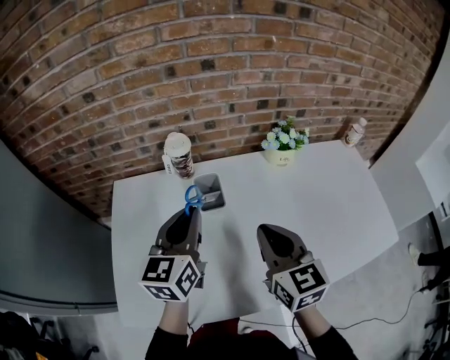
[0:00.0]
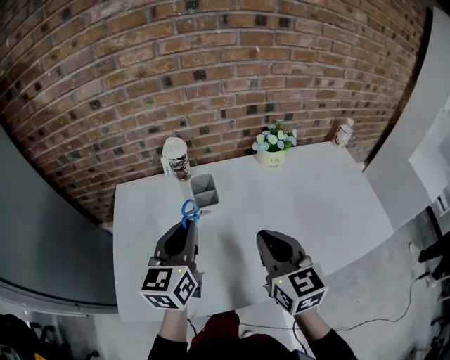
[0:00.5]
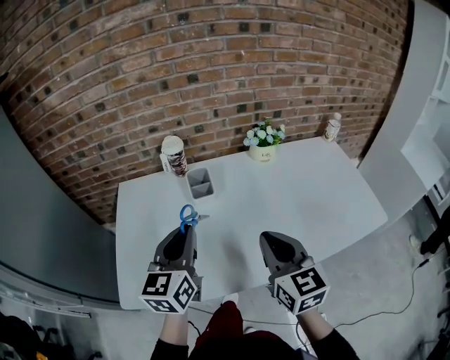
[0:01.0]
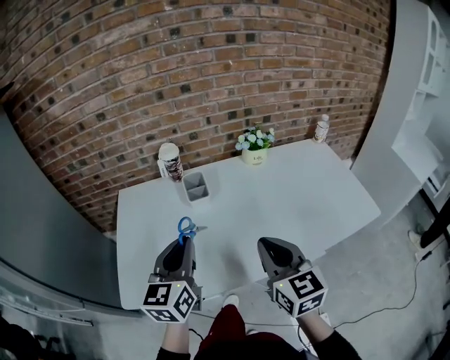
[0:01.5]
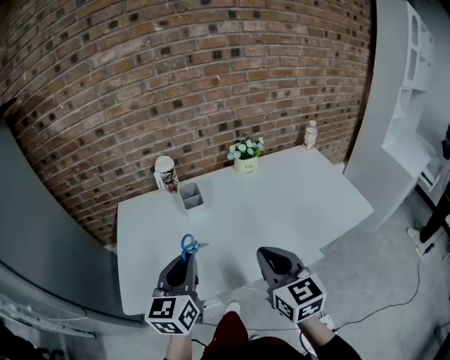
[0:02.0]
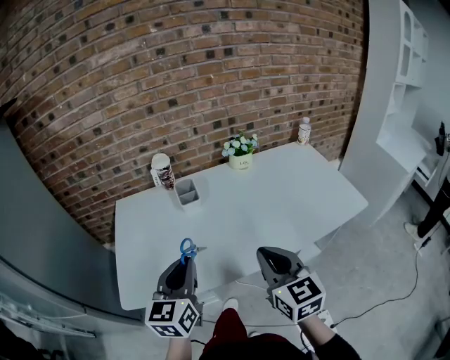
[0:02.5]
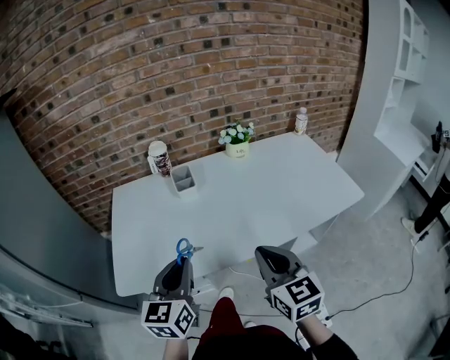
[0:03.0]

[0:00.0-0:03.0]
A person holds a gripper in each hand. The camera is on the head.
0:00.0 to 0:01.5: Both grippers travel together backward, approximately 15 cm.
0:01.5 to 0:03.0: Both grippers travel together backward, about 10 cm.

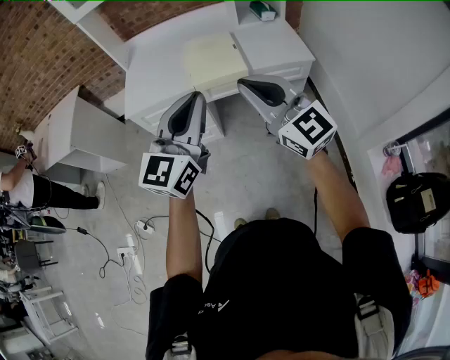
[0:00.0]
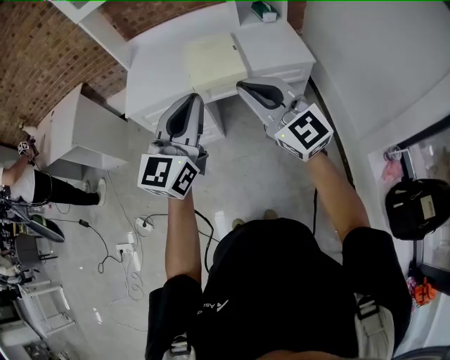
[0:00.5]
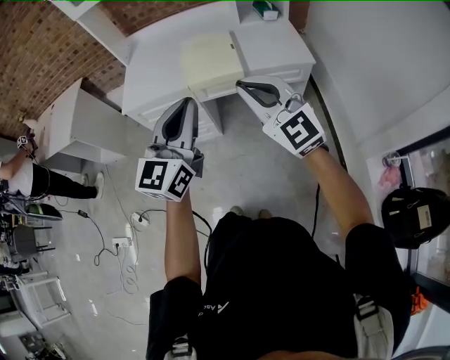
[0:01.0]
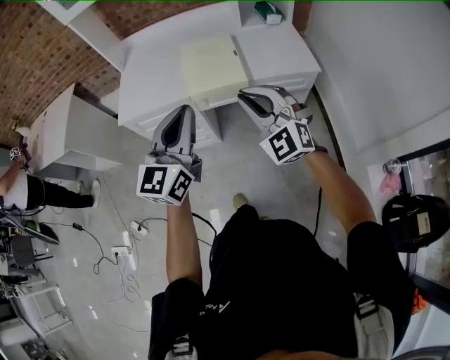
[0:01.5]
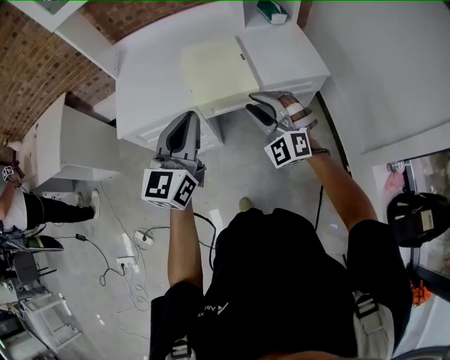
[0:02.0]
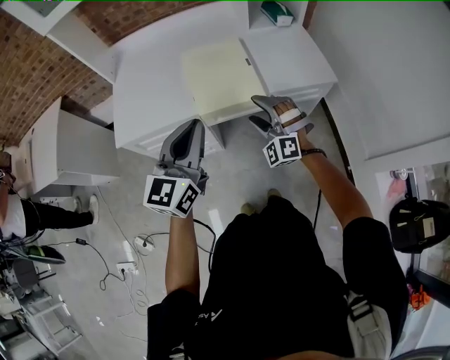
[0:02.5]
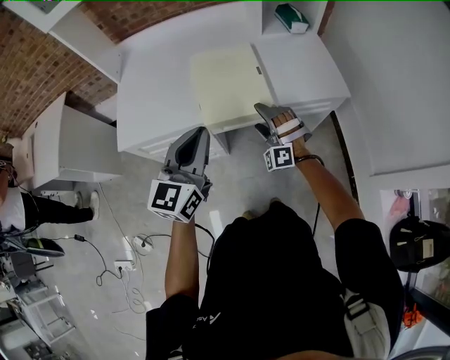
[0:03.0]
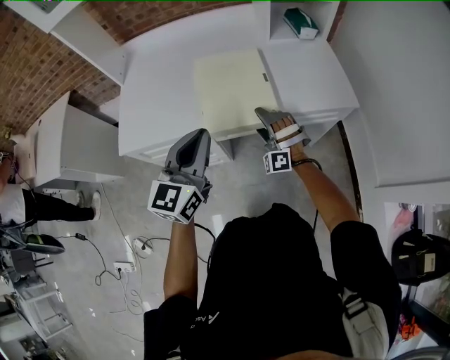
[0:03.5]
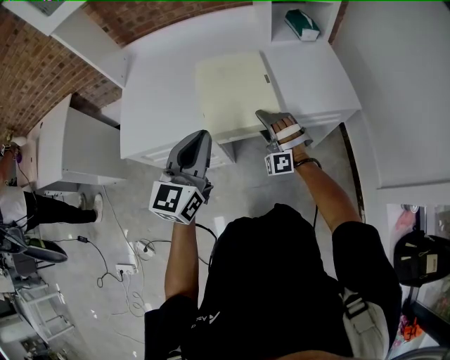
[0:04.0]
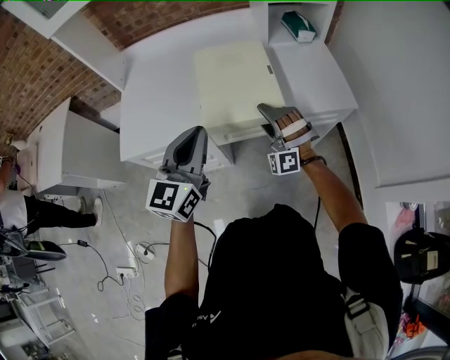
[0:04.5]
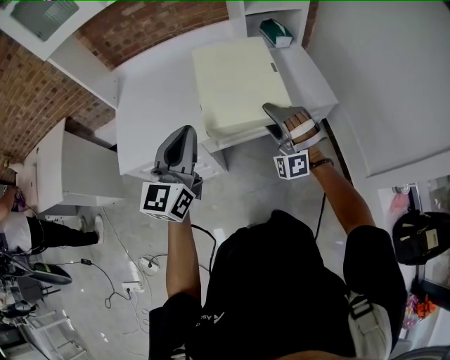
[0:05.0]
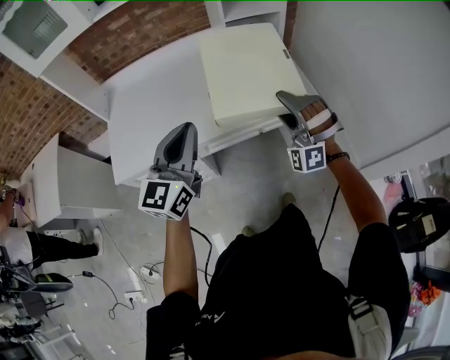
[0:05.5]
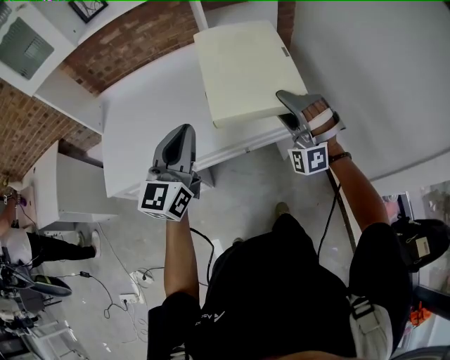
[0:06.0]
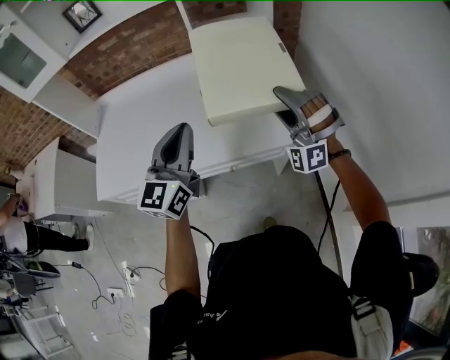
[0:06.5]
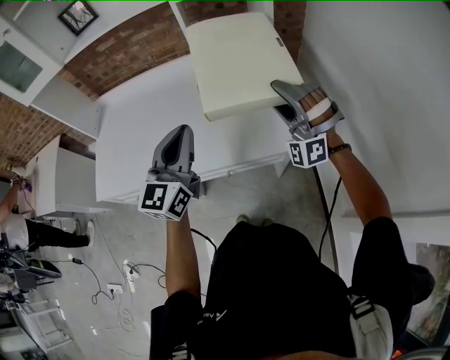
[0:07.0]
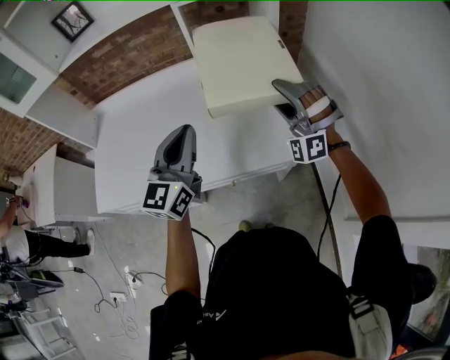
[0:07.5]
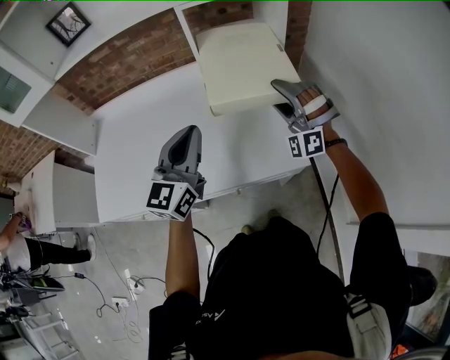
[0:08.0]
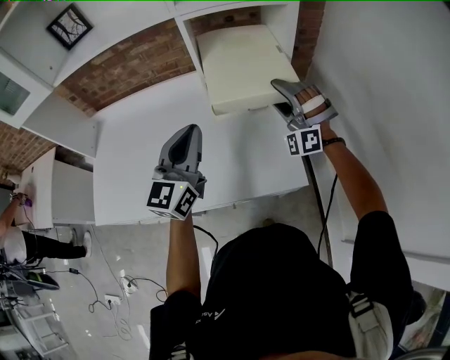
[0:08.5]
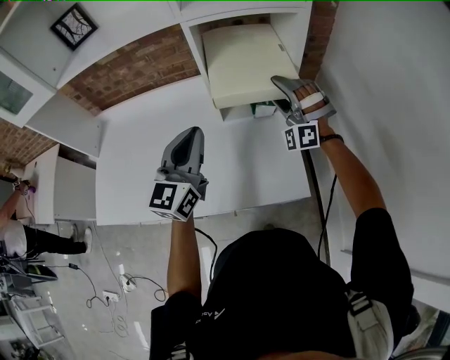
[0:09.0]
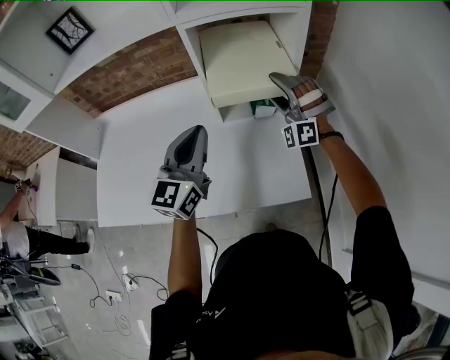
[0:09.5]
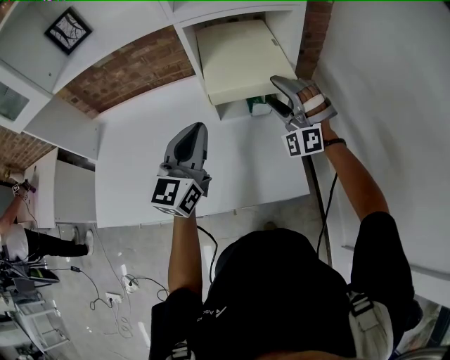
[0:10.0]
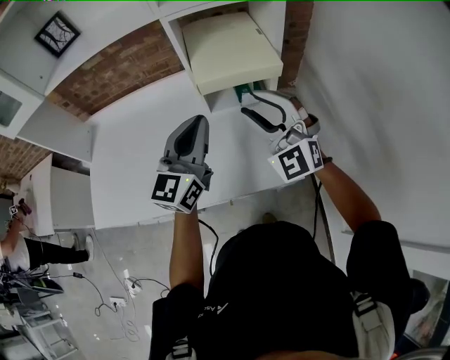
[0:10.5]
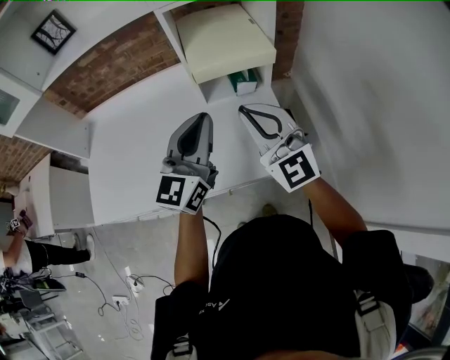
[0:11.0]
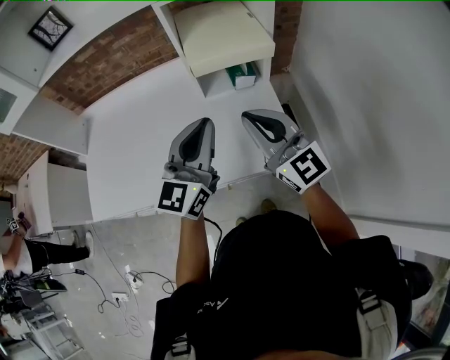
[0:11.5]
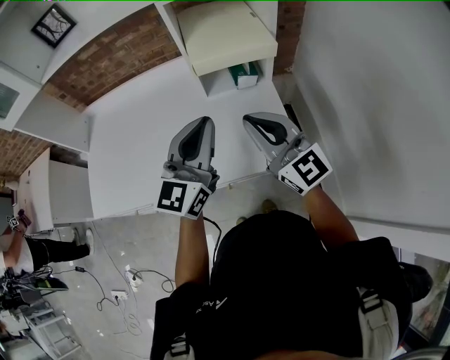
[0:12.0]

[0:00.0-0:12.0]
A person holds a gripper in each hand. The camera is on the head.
0:00.0 to 0:02.0: Both grippers travel together forward and downward, approximately 25 cm. The right gripper rotates around the line of its fingers by roughly 50 degrees, counterclockwise from behind.
0:02.0 to 0:04.0: The right gripper goes roughly 25 cm downward and forward, turns by about 30 degrees, and opens. Meanwhile the left gripper travels forward and downward by roughly 15 cm.
0:04.0 to 0:06.0: The left gripper travels to the right, upward and forward by some 20 cm, while the right gripper moves upward and to the right, roughly 35 cm.
0:06.0 to 0:08.0: The grippers both shift forward by roughly 20 cm.
0:08.0 to 0:10.0: Both grippers travel together forward, roughly 10 cm.
0:10.0 to 0:12.0: The left gripper is displaced backward by approximately 10 cm, while the right gripper is displaced backward by approximately 20 cm, twists some 80 degrees clockwise, seen from behind, and closes its fingers.

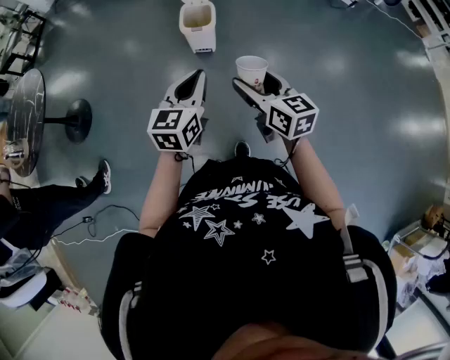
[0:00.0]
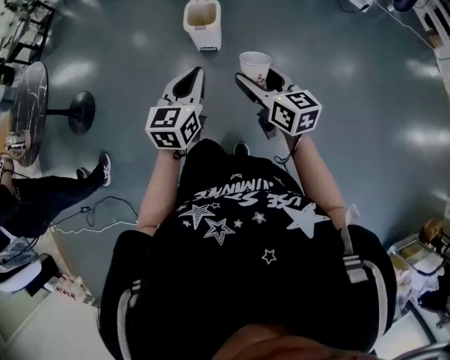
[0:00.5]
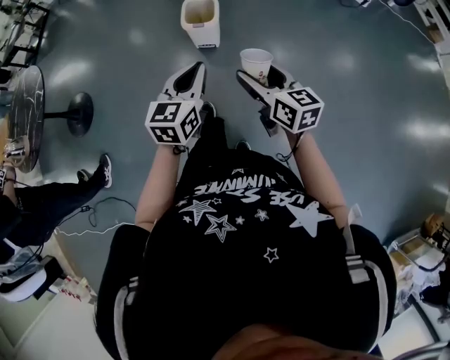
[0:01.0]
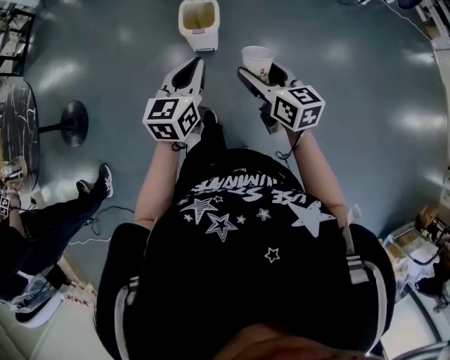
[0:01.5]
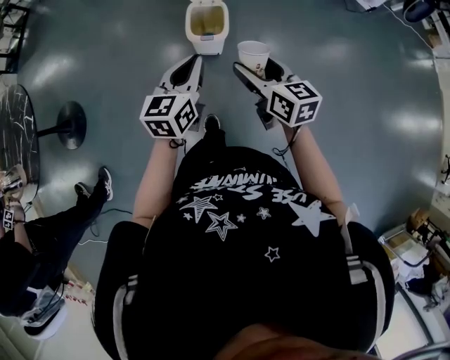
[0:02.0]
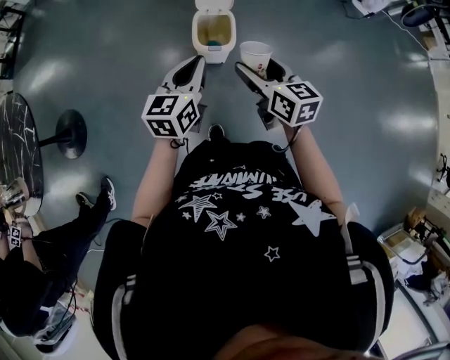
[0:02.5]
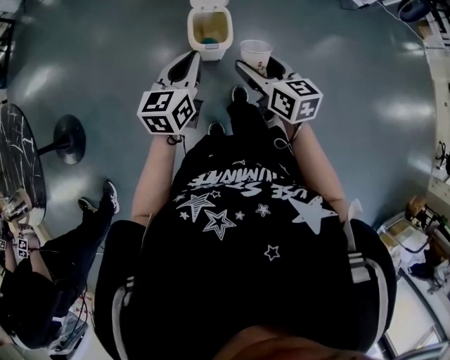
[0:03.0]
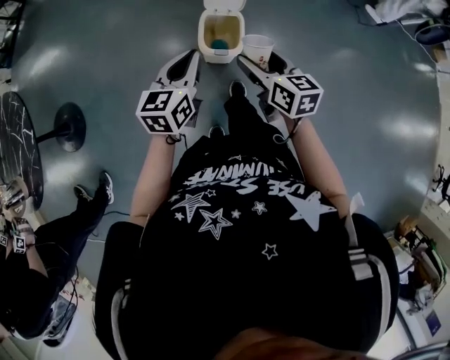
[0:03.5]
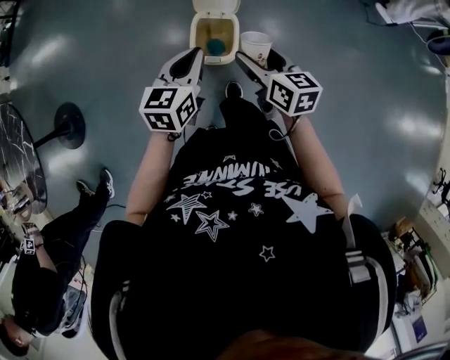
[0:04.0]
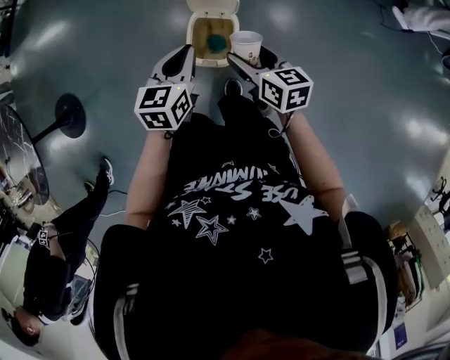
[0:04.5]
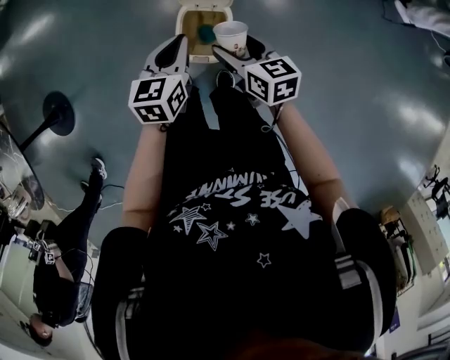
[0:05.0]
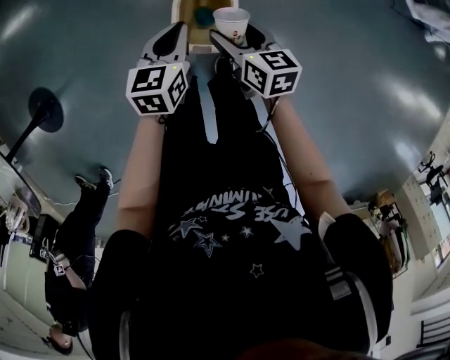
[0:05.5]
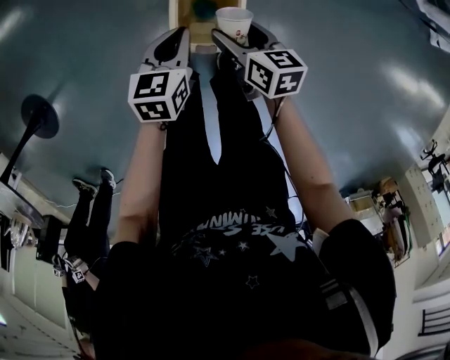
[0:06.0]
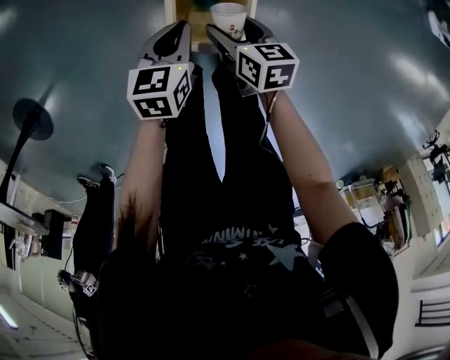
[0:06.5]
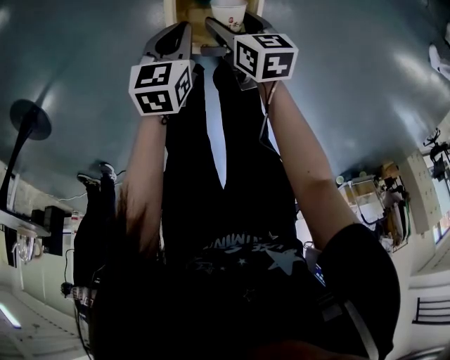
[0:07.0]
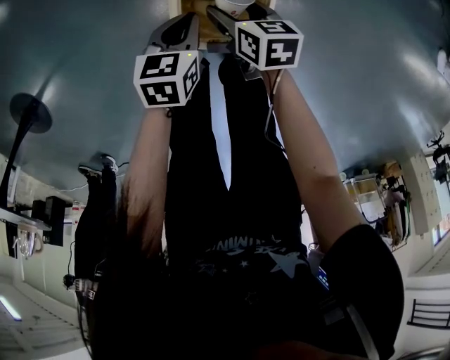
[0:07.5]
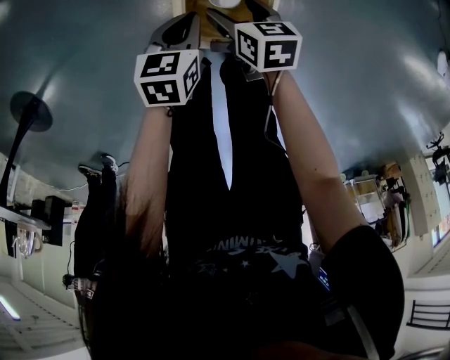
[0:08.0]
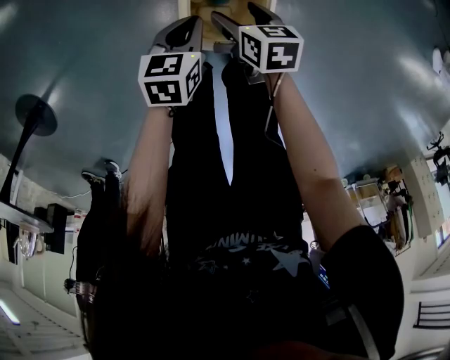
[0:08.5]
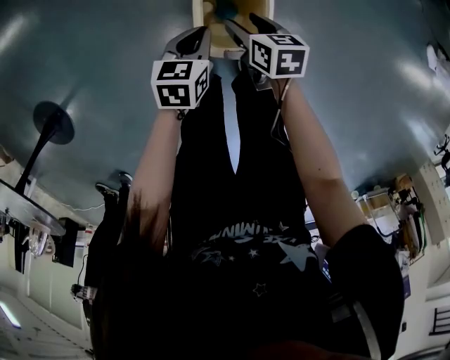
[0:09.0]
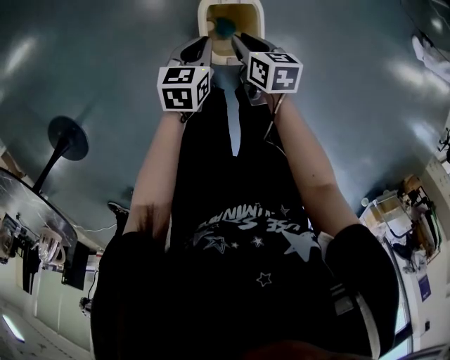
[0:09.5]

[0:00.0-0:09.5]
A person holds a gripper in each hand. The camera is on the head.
0:00.0 to 0:02.0: Both grippers travel together forward, roughly 25 cm.
0:02.0 to 0:04.0: Both grippers move forward, approximately 25 cm.
0:04.0 to 0:05.5: The grippers both shift downward and forward by some 20 cm.
0:05.5 to 0:07.5: The grippers both shift downward by approximately 25 cm. The right gripper swivels roughly 20 degrees.
0:07.5 to 0:09.5: Both grippers move upward, about 20 cm. The right gripper closes its fingers.

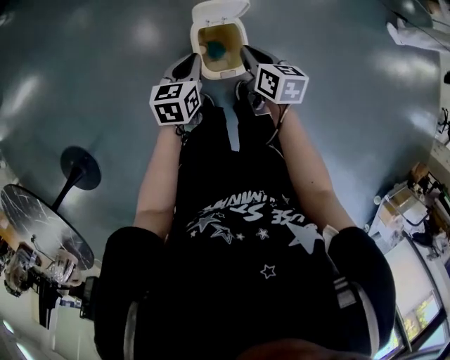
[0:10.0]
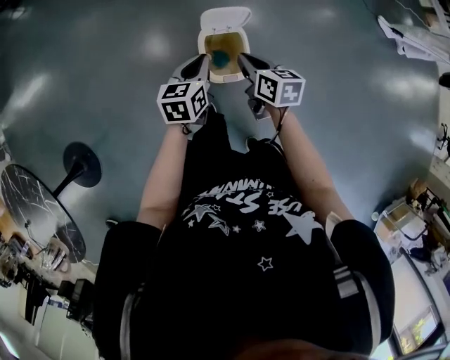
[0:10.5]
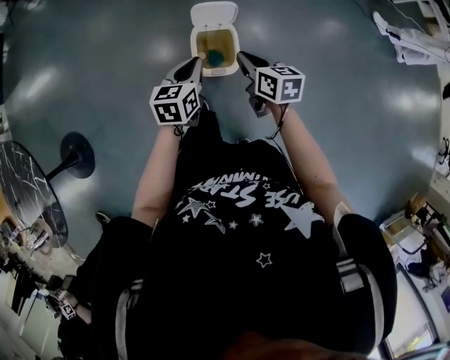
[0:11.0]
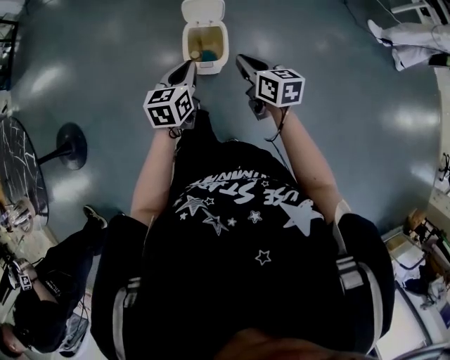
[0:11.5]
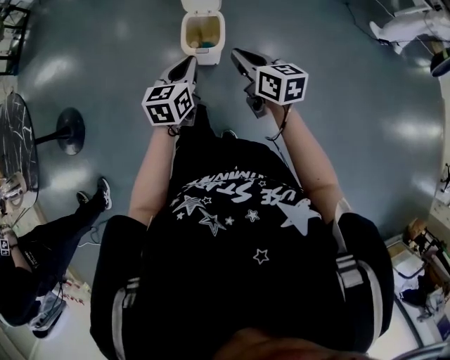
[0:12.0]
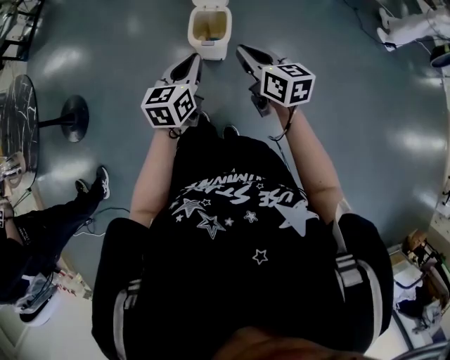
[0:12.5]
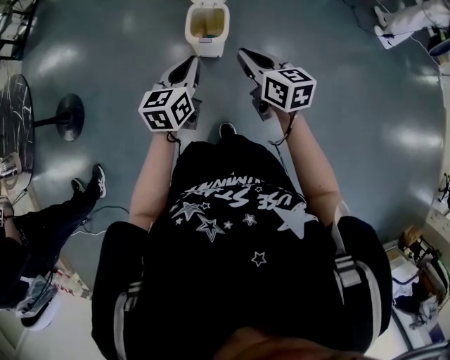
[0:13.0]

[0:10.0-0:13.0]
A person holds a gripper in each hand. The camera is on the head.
0:10.0 to 0:11.5: The right gripper travels backward, upward and to the right by roughly 20 cm, and changes its angle by some 20 degrees; the left gripper moves backward and upward, some 20 cm.
0:11.5 to 0:13.0: The left gripper moves backward, some 15 cm. The right gripper goes about 15 cm backward and upward.
